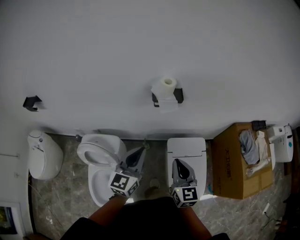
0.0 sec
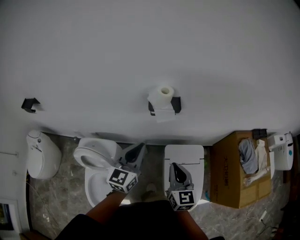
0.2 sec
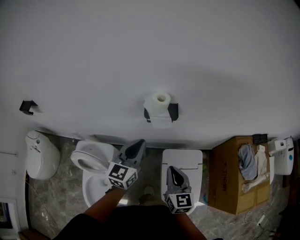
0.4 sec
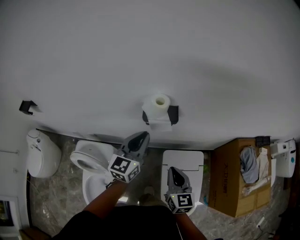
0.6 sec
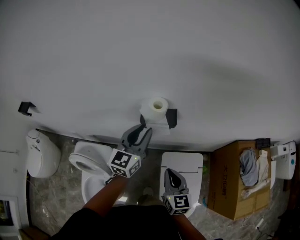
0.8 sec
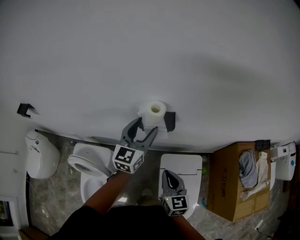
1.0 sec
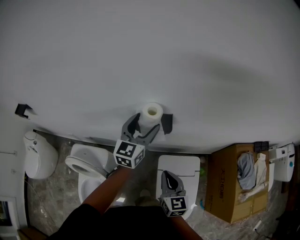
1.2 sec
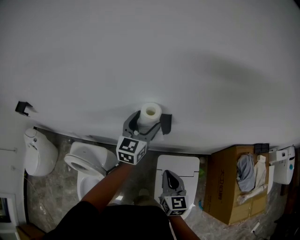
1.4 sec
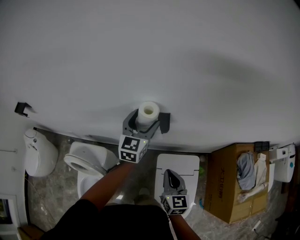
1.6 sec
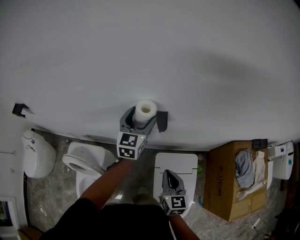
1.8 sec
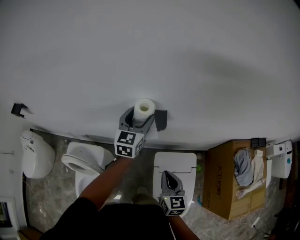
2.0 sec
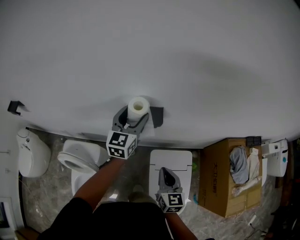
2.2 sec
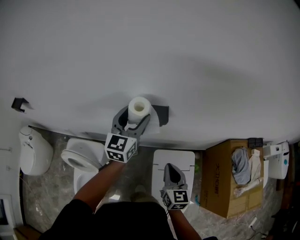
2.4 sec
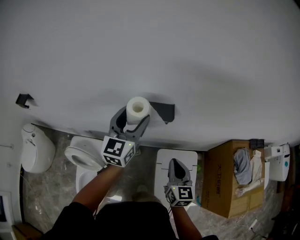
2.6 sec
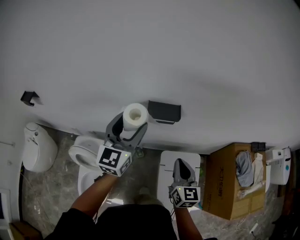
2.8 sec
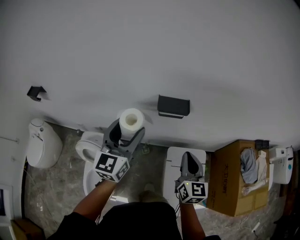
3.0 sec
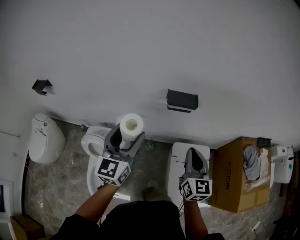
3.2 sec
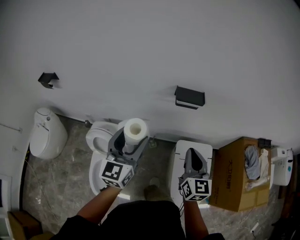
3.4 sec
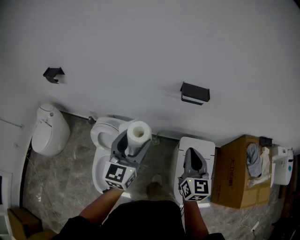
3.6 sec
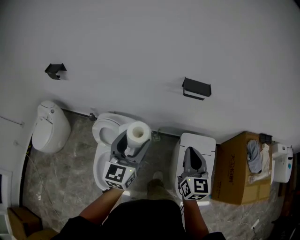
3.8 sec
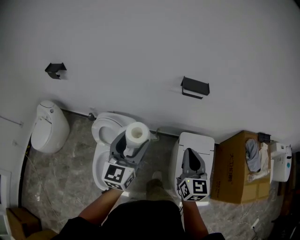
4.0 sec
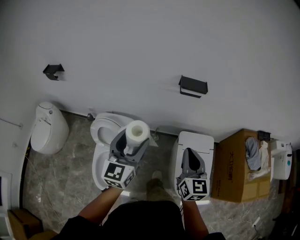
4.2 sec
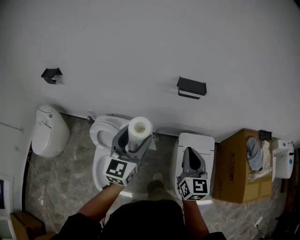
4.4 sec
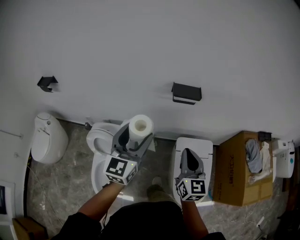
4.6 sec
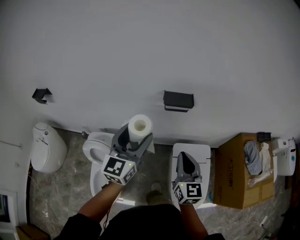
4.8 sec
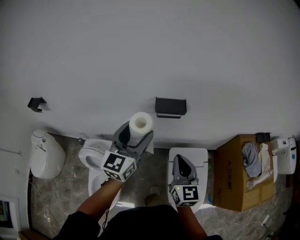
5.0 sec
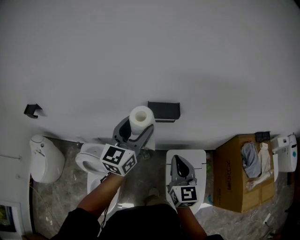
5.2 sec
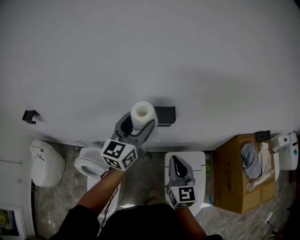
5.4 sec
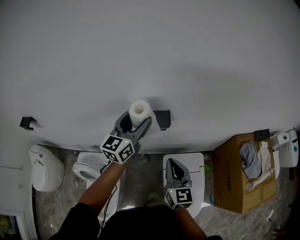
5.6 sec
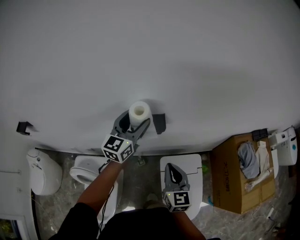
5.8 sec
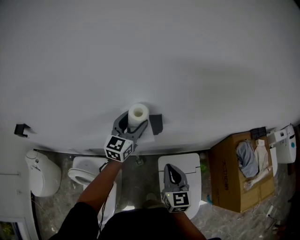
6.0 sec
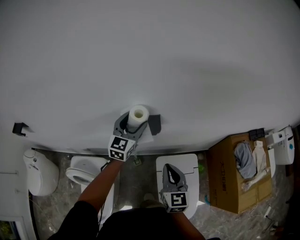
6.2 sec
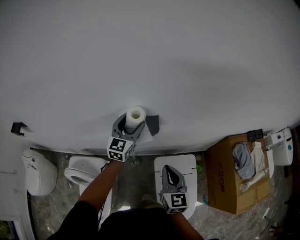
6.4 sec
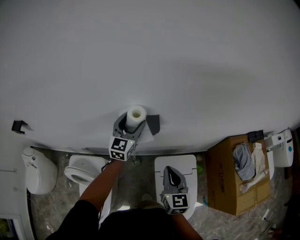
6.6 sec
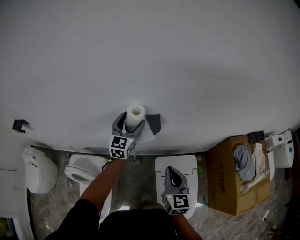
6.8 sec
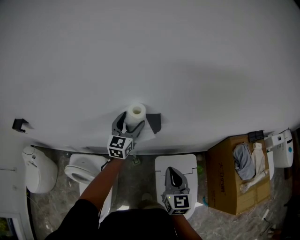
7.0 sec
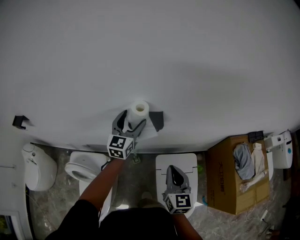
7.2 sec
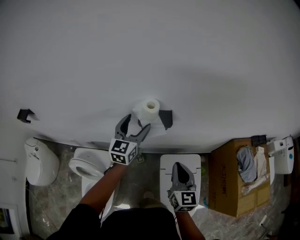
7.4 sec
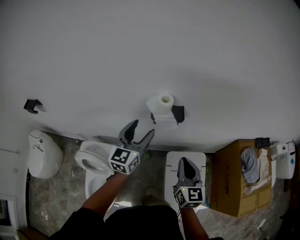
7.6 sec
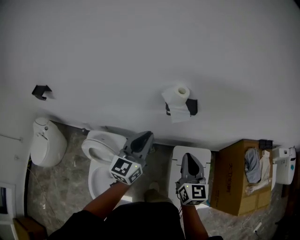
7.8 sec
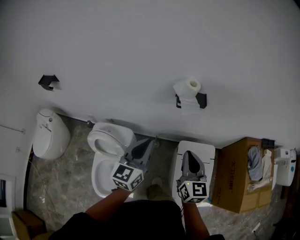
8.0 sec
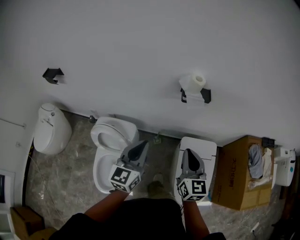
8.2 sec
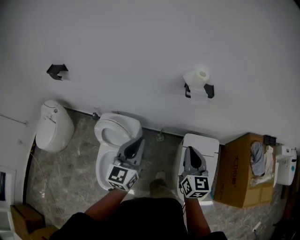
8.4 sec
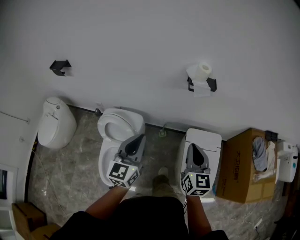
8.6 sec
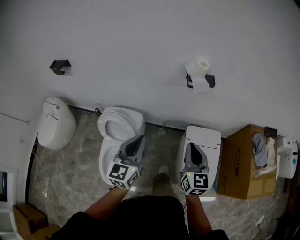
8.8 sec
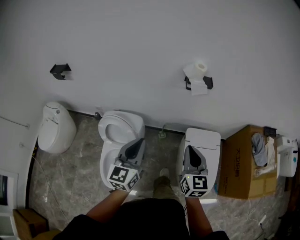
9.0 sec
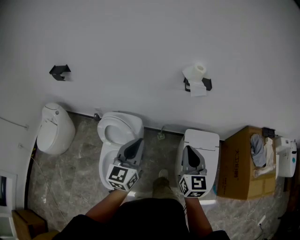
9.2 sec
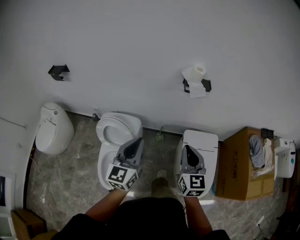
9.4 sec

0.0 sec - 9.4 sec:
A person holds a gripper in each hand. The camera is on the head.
0.0 sec - 1.6 sec: The left gripper travels forward by some 35 cm, and opens. Meanwhile the right gripper shifts approximately 20 cm forward, to the right and downward.
1.6 sec - 3.2 sec: The right gripper travels upward, backward and to the left by some 15 cm, while the left gripper shifts approximately 35 cm backward and to the left.
3.2 sec - 4.8 sec: The left gripper moves roughly 15 cm backward and comes back; the right gripper goes backward and returns, some 15 cm each way.
4.8 sec - 6.2 sec: The right gripper shifts approximately 15 cm forward and to the right. The left gripper moves forward, approximately 30 cm.
6.2 sec - 7.8 sec: The left gripper travels backward and to the left by about 25 cm, and closes. The right gripper is displaced backward and to the left by about 10 cm.
7.8 sec - 9.4 sec: Both grippers travel together backward and to the left, some 25 cm.

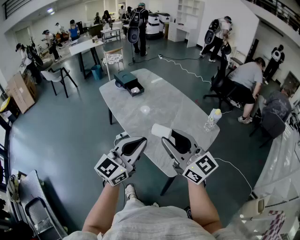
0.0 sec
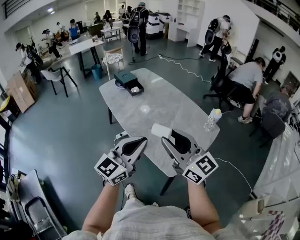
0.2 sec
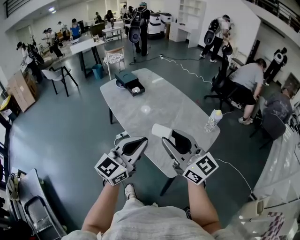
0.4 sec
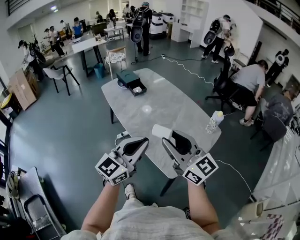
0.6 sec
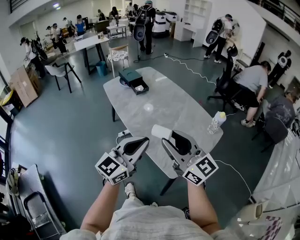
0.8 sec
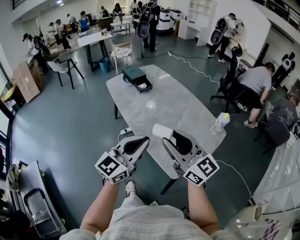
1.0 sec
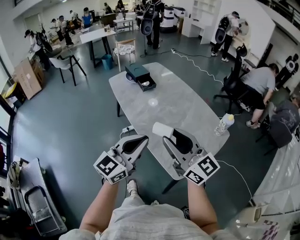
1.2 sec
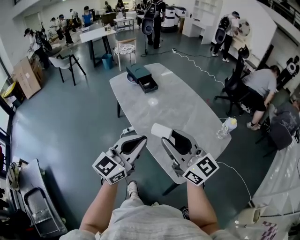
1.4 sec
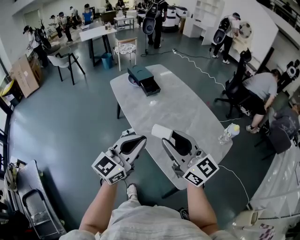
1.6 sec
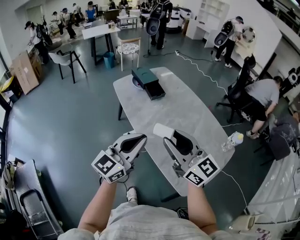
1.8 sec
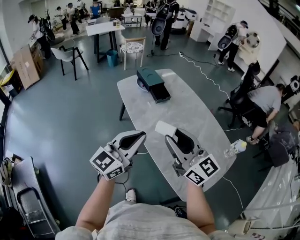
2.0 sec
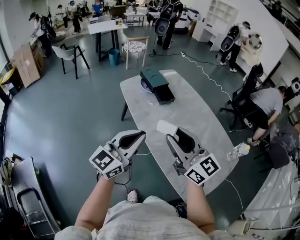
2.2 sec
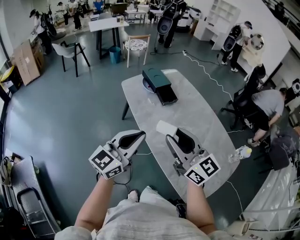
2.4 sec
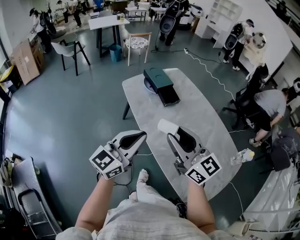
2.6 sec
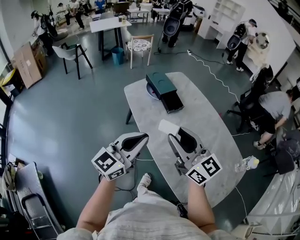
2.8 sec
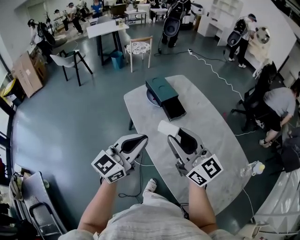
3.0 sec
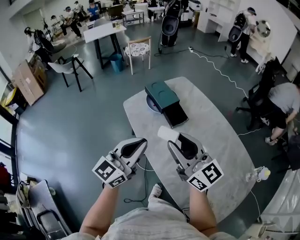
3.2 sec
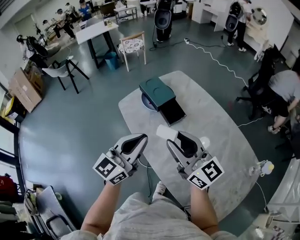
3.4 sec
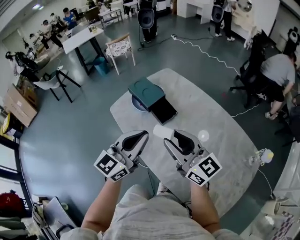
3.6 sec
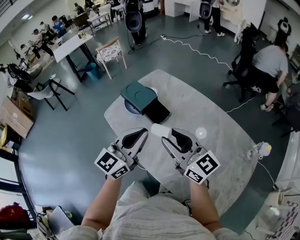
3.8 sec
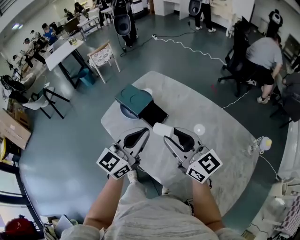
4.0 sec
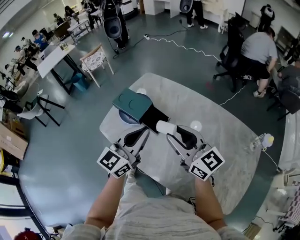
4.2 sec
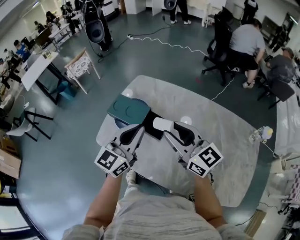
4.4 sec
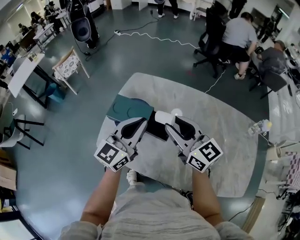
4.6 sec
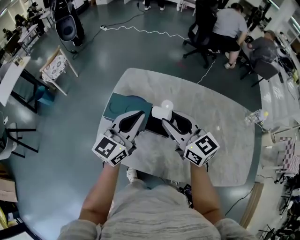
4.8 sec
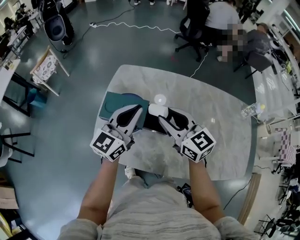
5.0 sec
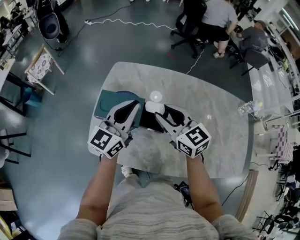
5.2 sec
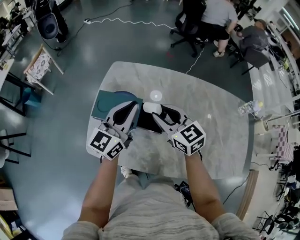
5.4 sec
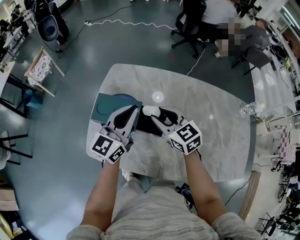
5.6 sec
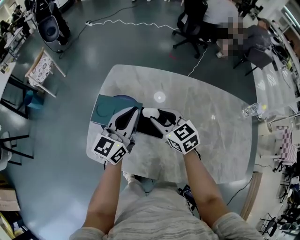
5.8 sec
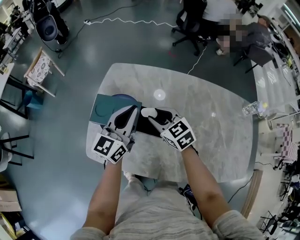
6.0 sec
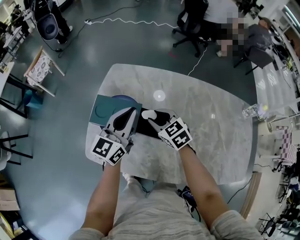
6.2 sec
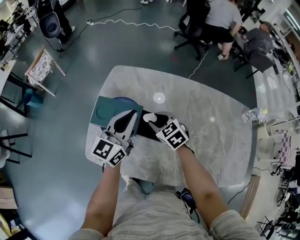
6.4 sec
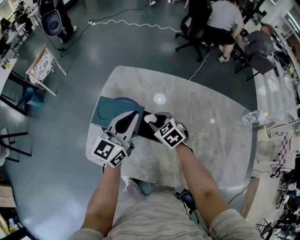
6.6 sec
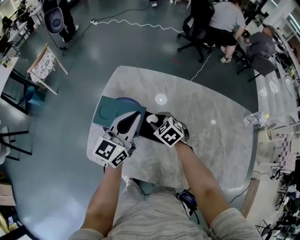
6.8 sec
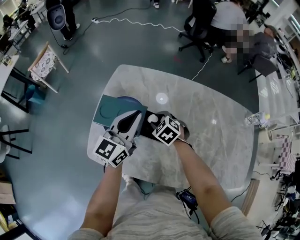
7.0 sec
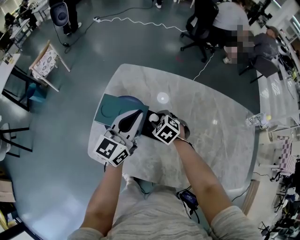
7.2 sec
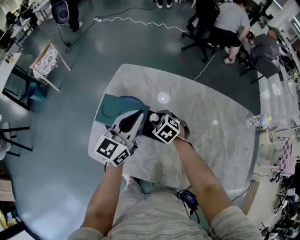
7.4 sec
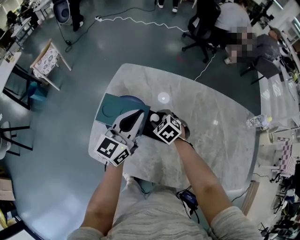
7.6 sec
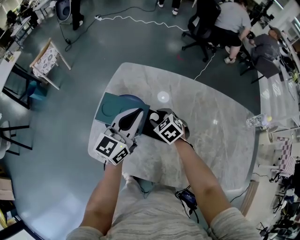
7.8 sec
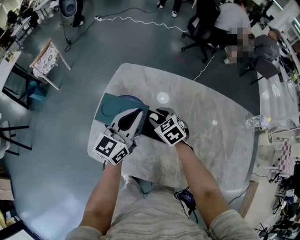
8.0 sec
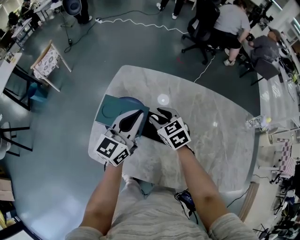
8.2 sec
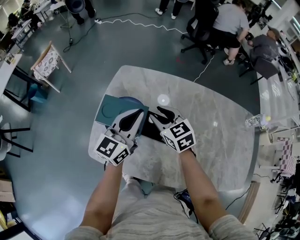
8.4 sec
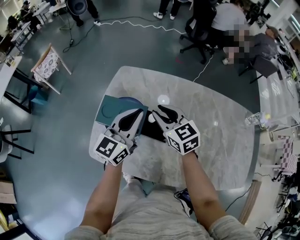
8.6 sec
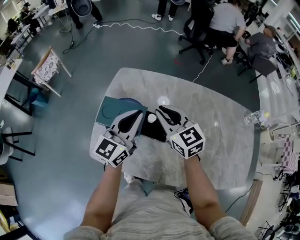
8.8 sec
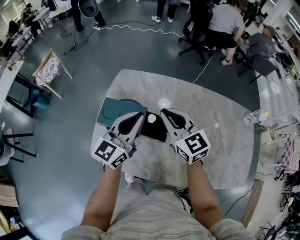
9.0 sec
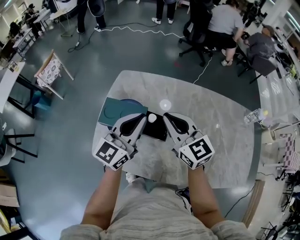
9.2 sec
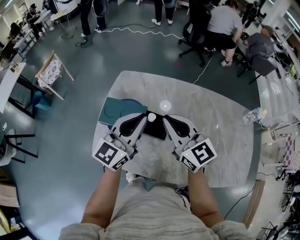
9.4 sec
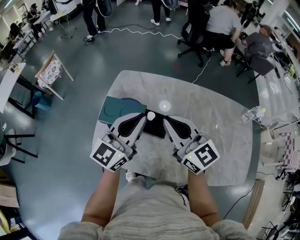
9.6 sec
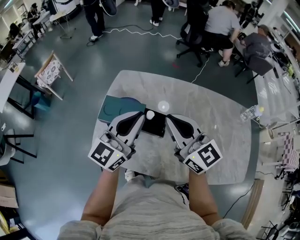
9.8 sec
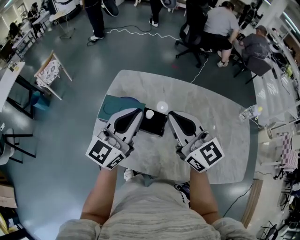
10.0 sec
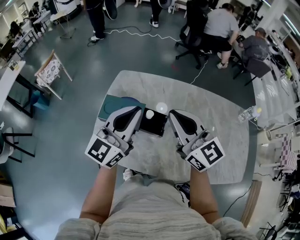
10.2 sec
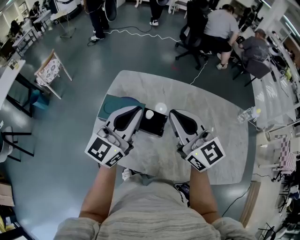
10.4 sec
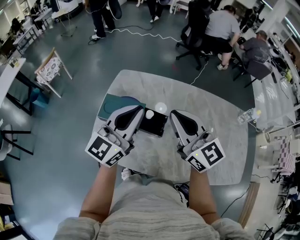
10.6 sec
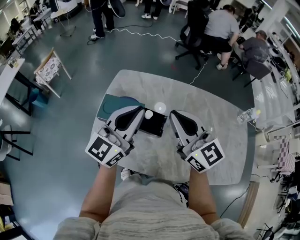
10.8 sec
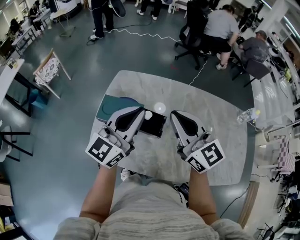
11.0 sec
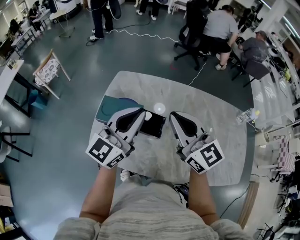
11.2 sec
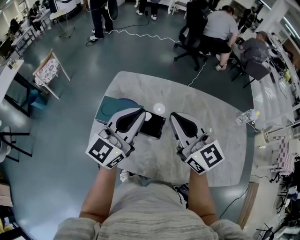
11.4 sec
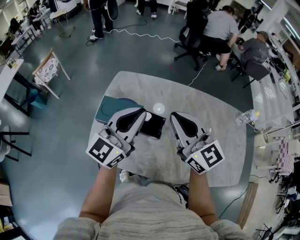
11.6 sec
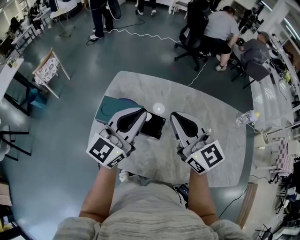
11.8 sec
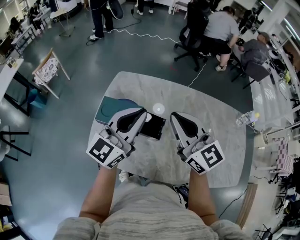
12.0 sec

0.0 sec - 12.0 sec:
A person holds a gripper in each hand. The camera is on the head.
0.0 sec - 1.6 sec: The grippers both shift forward and to the left by some 15 cm.
1.6 sec - 3.0 sec: The two grippers go some 30 cm forward and to the left.
3.0 sec - 4.4 sec: The left gripper ends up some 30 cm from where it was, and rotates some 20 degrees, while the right gripper changes place by about 25 cm, and swivels roughly 30 degrees.
4.4 sec - 6.0 sec: The right gripper heads downward and forward, covering some 20 cm, and points its fingers approximately 30 degrees further downward. The left gripper heads forward and downward, covering roughly 15 cm.
6.0 sec - 7.6 sec: The right gripper moves downward, about 10 cm, and swivels approximately 30 degrees.
7.6 sec - 9.0 sec: The left gripper changes place by roughly 5 cm. The right gripper moves upward, some 25 cm, angles its fingers upward, by about 50 degrees, and closes its fingers.
9.0 sec - 10.4 sec: The left gripper goes about 10 cm upward. The right gripper moves upward and backward, roughly 15 cm.
10.4 sec - 12.0 sec: The grippers move only a little.

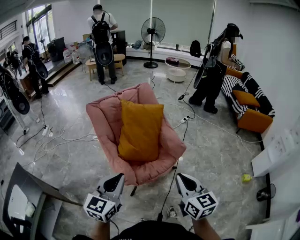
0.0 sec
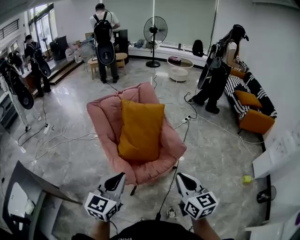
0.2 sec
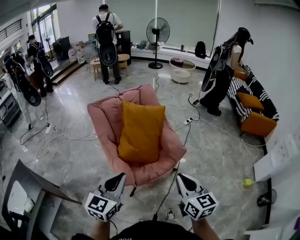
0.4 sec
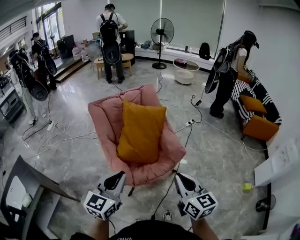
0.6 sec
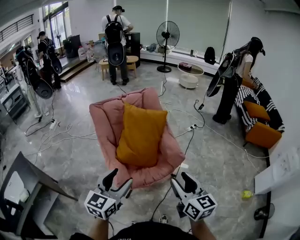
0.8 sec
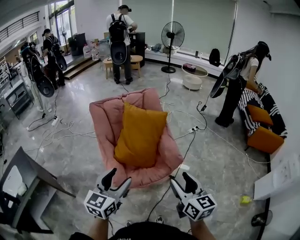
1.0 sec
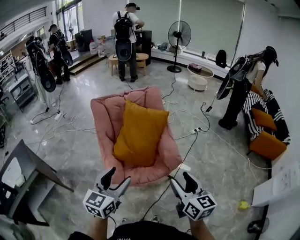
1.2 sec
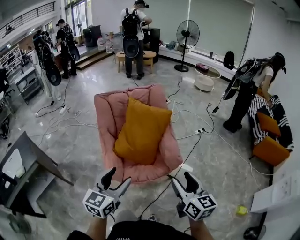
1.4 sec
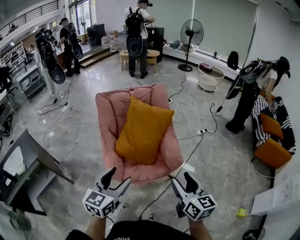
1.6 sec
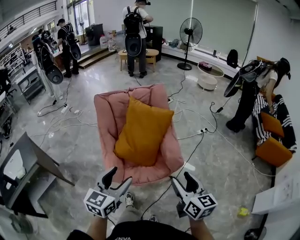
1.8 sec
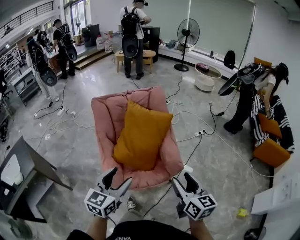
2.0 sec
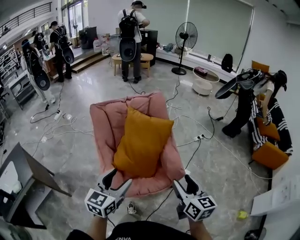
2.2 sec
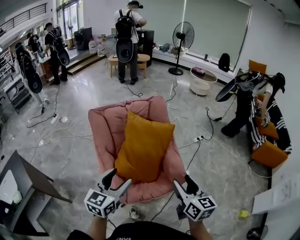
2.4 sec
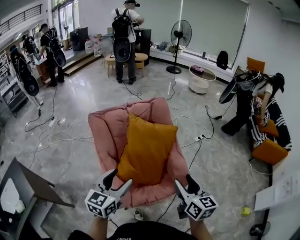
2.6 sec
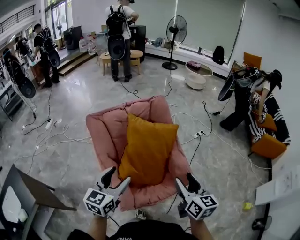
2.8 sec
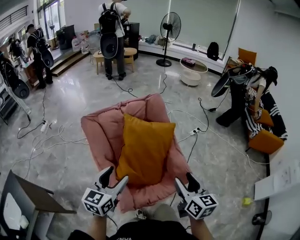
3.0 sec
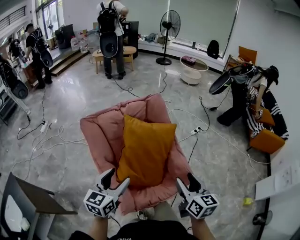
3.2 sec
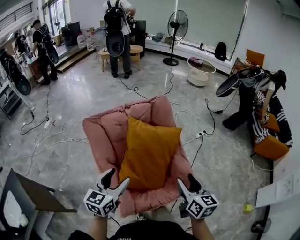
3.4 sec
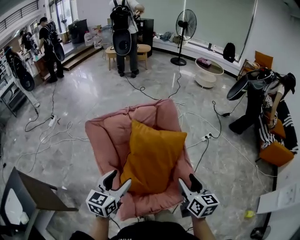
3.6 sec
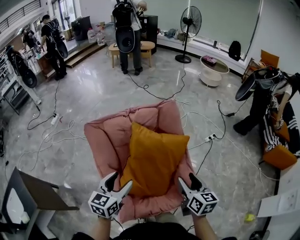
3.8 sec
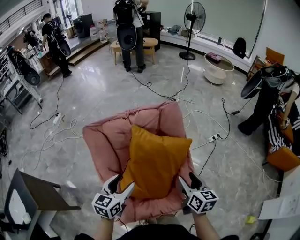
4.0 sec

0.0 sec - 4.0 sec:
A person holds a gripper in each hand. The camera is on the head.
0.0 sec - 1.4 sec: The left gripper heads to the right, covering roughly 15 cm, and opens; the right gripper travels to the right and forward by roughly 20 cm, and opens its fingers.
1.4 sec - 2.6 sec: The grippers both shift forward and to the left by some 20 cm.
2.6 sec - 4.0 sec: Both grippers move forward and downward, some 25 cm.
